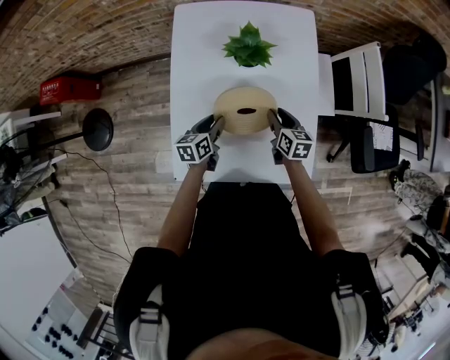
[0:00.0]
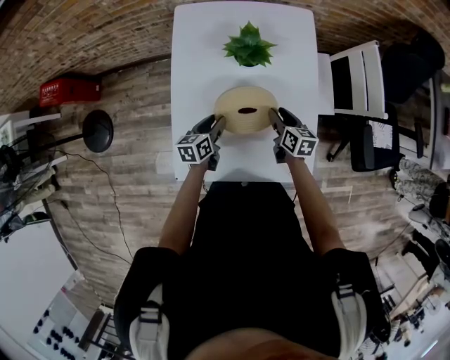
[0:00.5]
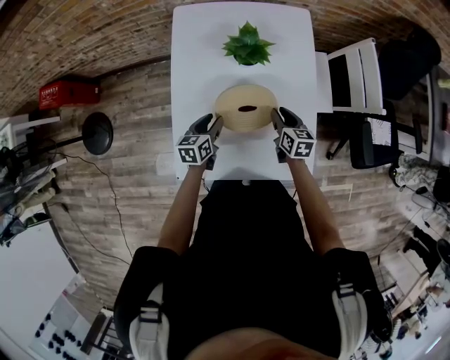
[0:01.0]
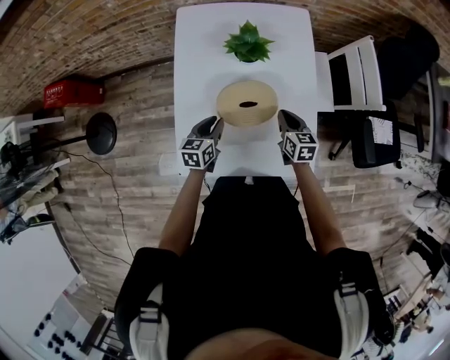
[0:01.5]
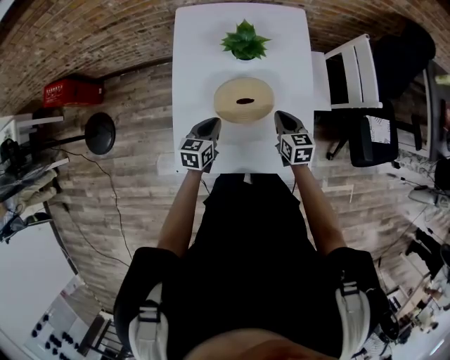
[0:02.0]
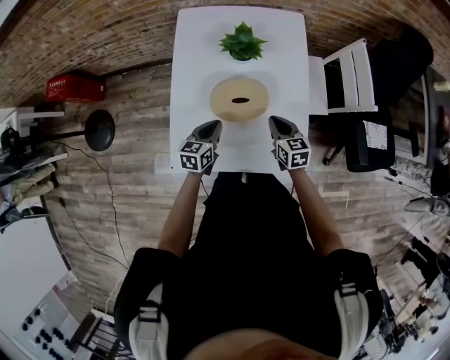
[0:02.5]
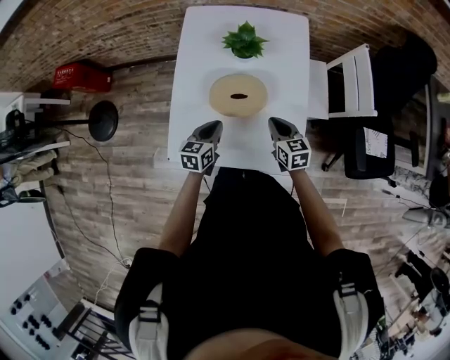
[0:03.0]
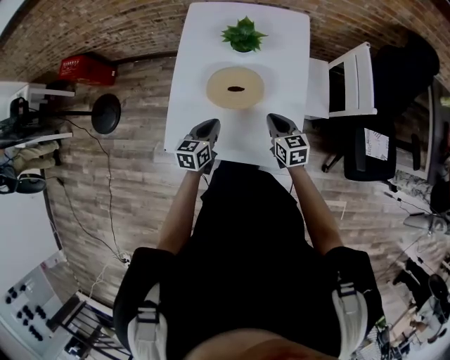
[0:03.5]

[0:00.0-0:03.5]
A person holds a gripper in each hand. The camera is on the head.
0.0 to 2.0 s: The left gripper ends up about 5 cm from where it was, and closes its fingers; the right gripper moves backward and upward, approximately 5 cm, and closes its fingers.
2.0 to 3.5 s: The right gripper shifts roughly 5 cm backward. The left gripper shifts approximately 10 cm backward and to the right.

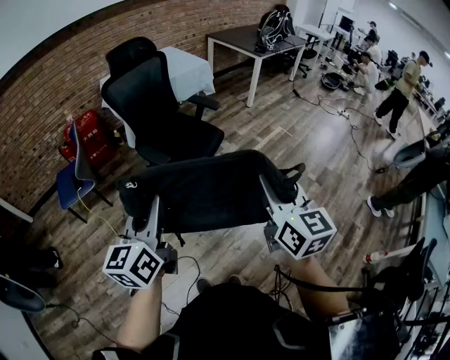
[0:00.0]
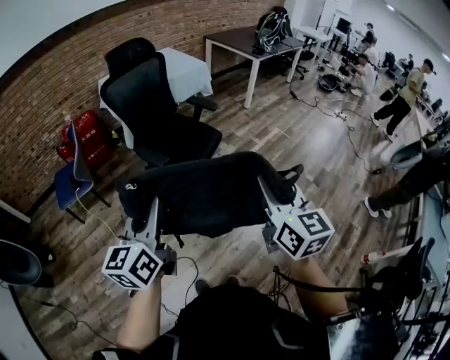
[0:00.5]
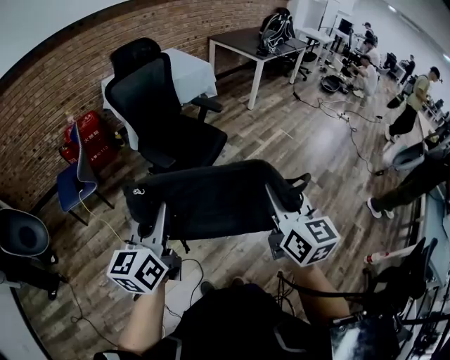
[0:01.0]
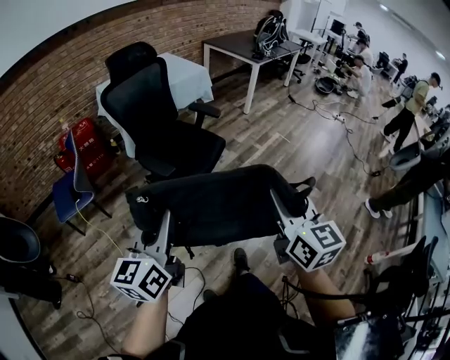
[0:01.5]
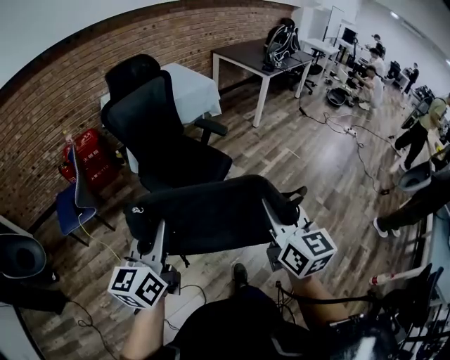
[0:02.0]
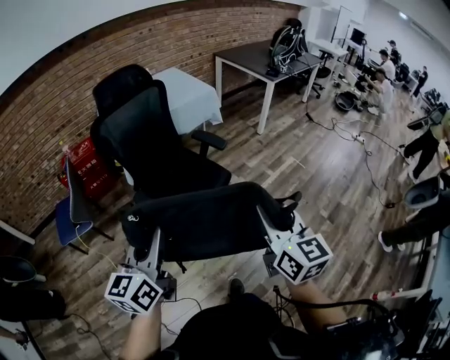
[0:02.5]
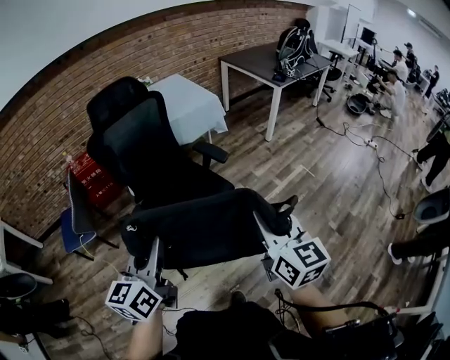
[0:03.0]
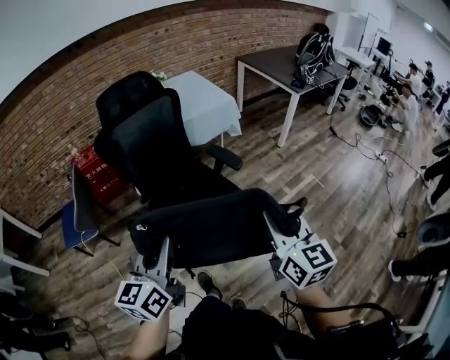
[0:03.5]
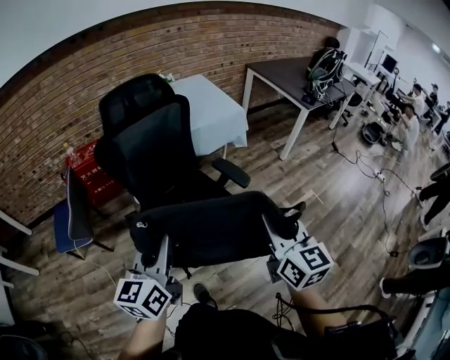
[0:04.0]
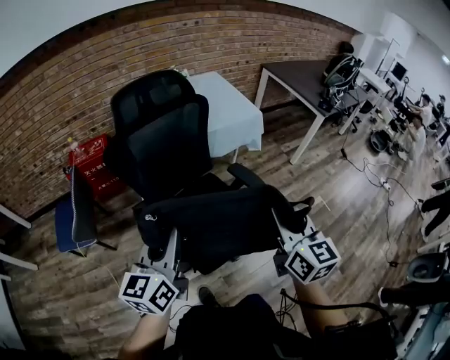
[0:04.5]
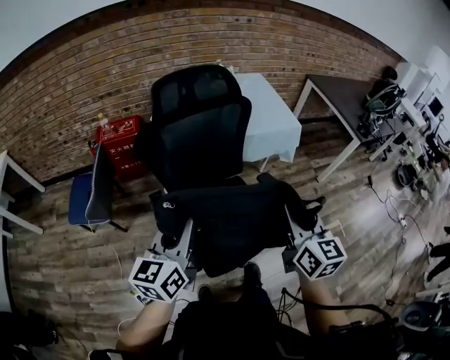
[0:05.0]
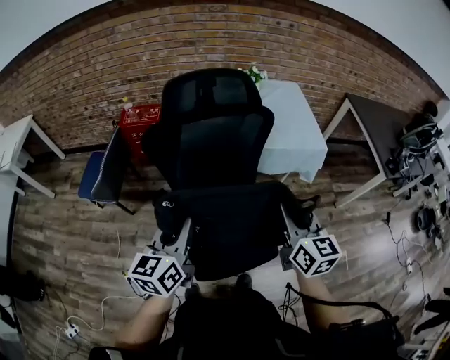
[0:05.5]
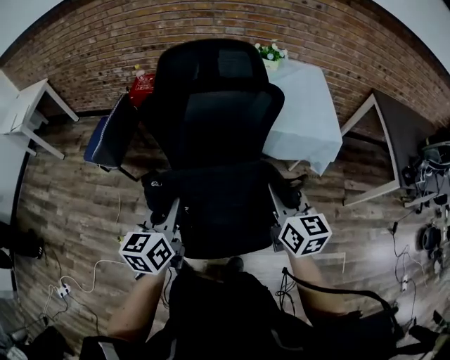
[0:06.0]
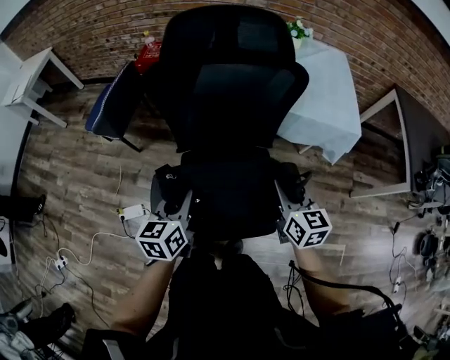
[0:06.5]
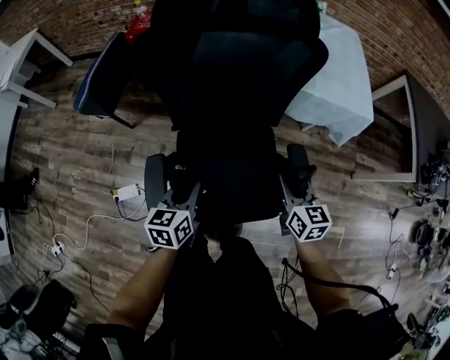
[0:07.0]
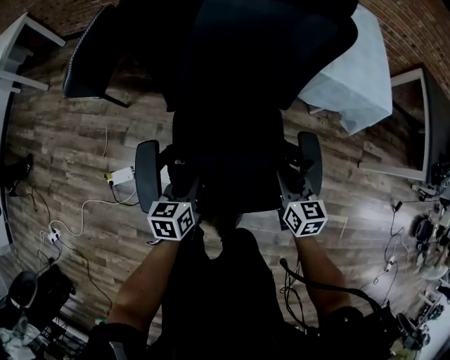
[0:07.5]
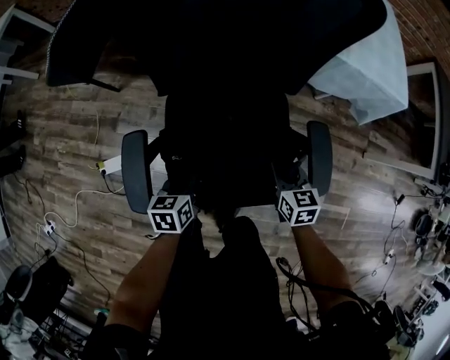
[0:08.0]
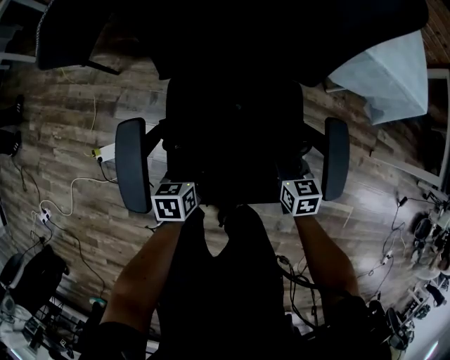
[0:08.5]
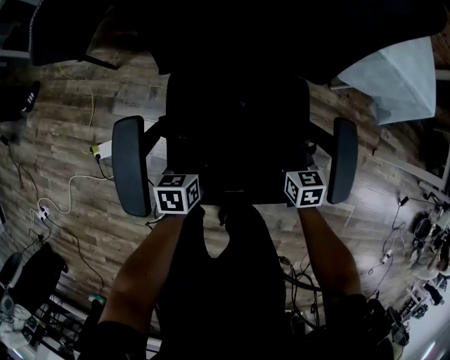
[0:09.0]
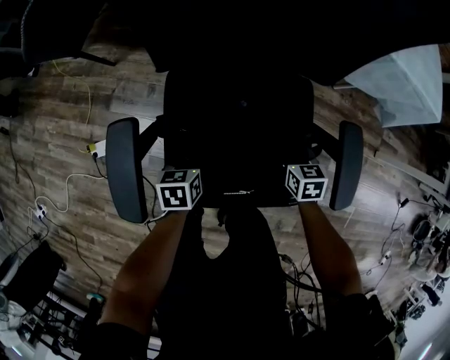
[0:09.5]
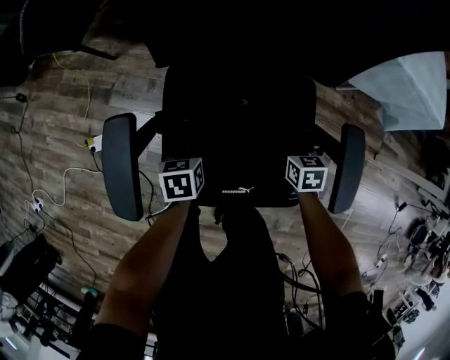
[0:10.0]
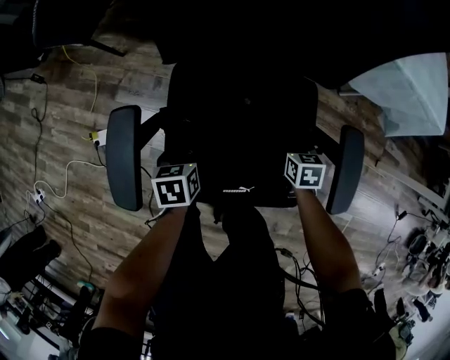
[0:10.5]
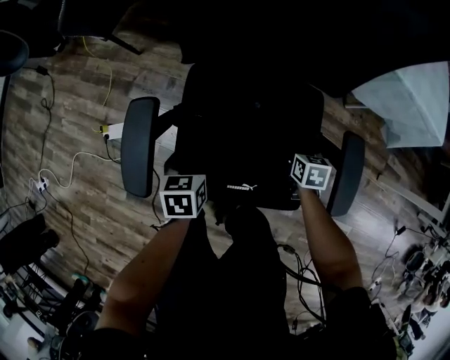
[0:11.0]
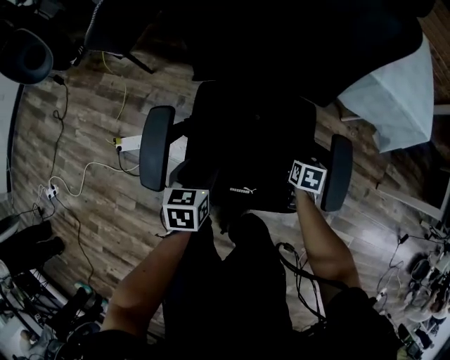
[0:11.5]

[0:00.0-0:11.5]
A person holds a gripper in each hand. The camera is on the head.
0.0 to 2.0 s: Both grippers move forward, some 10 cm.
2.0 to 4.0 s: The two grippers go approximately 30 cm forward.
4.0 to 6.0 s: The left gripper moves approximately 20 cm, and rotates about 30 degrees. The right gripper ends up some 35 cm from where it was, and rotates about 40 degrees.
6.0 to 7.5 s: Both grippers move downward, roughly 30 cm. The left gripper swivels some 20 degrees.
7.5 to 9.5 s: Both grippers move downward, some 20 cm.
9.5 to 11.5 s: The right gripper opens, while the left gripper moves upward, approximately 15 cm, and opens up.

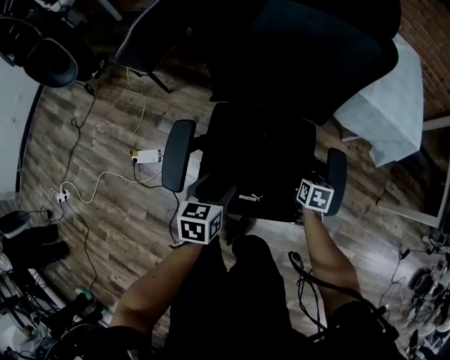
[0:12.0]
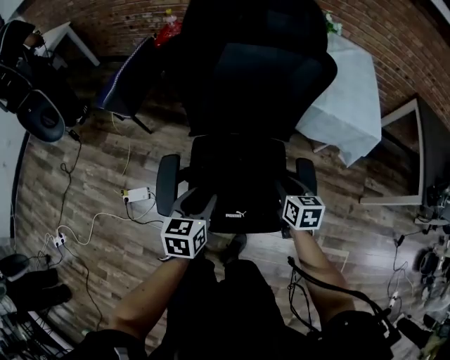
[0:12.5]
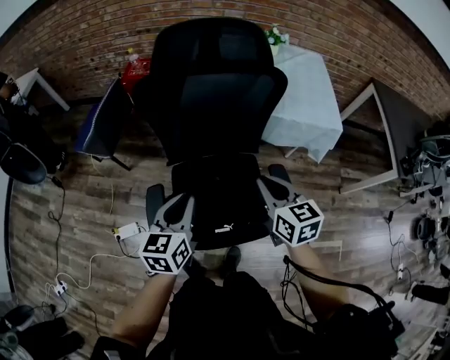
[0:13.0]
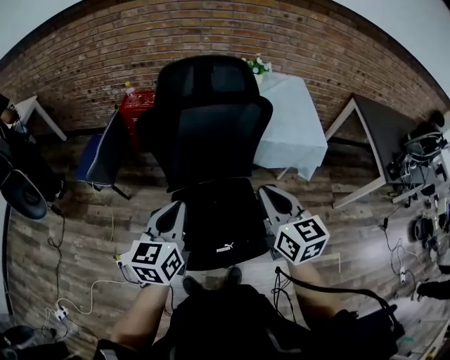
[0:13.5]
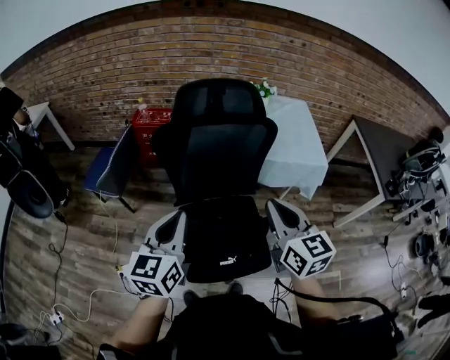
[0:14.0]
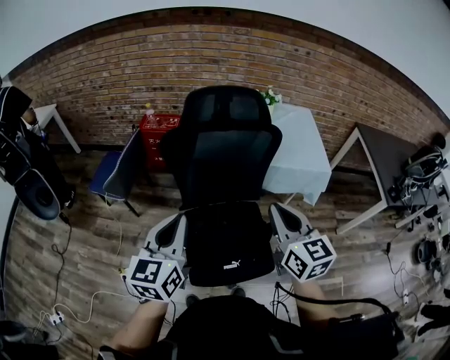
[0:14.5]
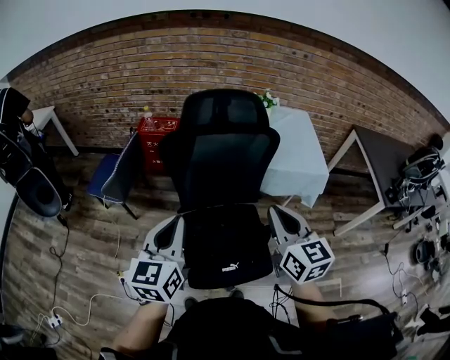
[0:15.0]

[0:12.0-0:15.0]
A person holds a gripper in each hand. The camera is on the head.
12.0 to 13.5 s: The two grippers go some 40 cm upward. The right gripper tips its fingers upward by roughly 50 degrees, and closes its fingers; the left gripper turns by roughly 30 degrees, and closes.
13.5 to 15.0 s: Both grippers move upward, about 5 cm.

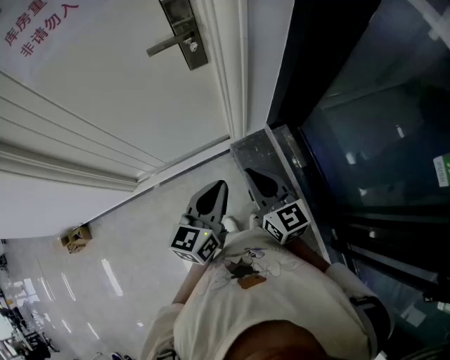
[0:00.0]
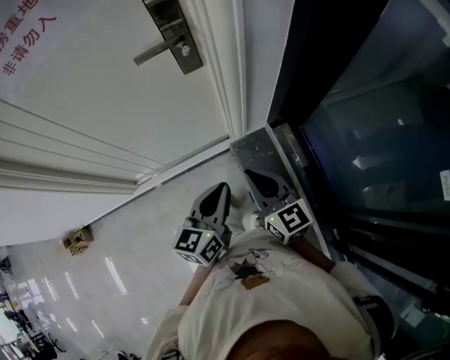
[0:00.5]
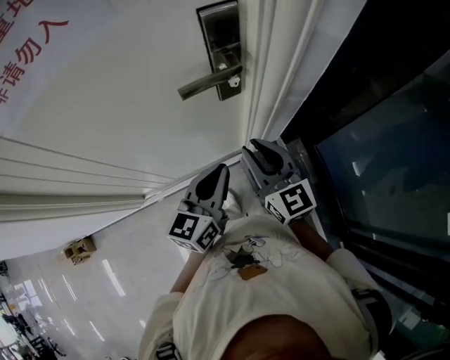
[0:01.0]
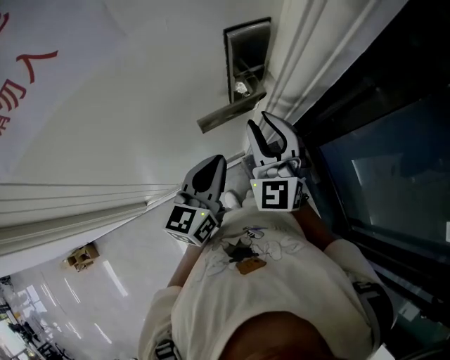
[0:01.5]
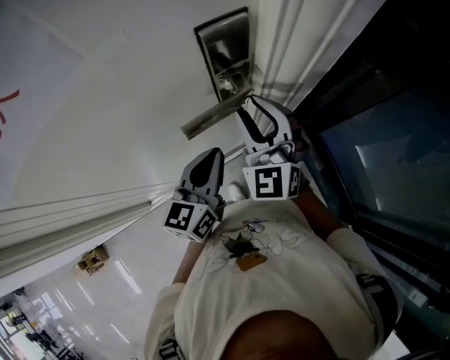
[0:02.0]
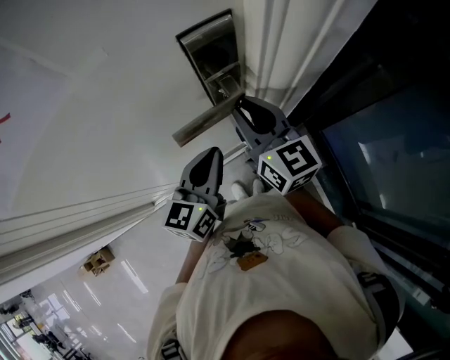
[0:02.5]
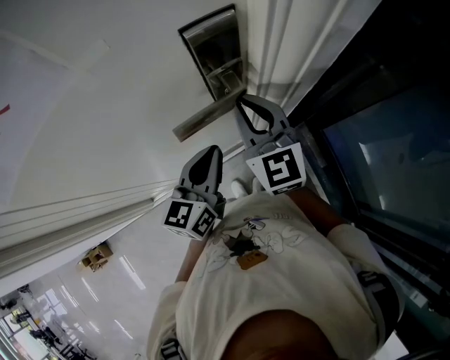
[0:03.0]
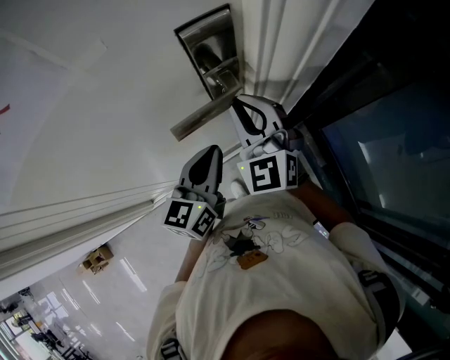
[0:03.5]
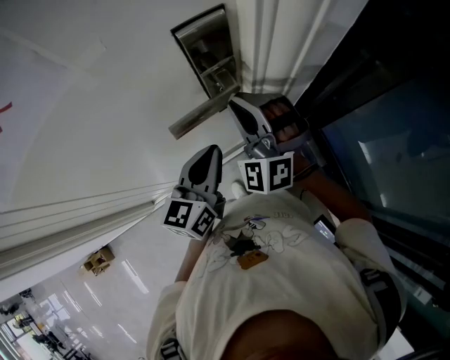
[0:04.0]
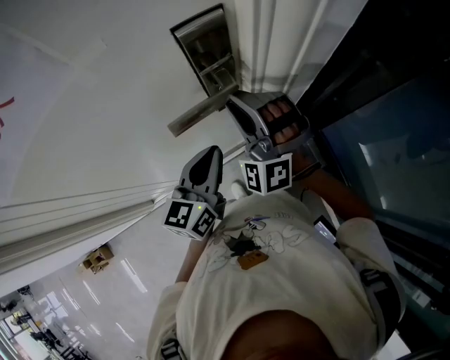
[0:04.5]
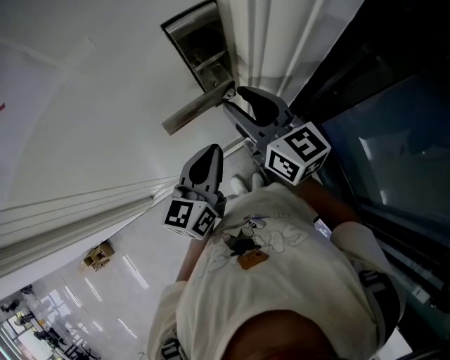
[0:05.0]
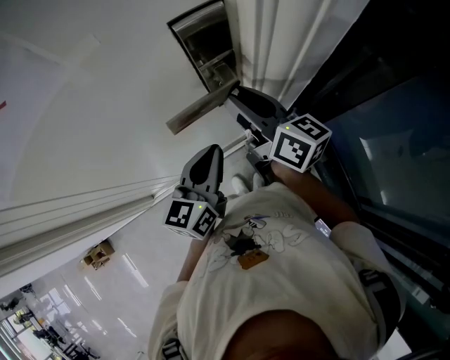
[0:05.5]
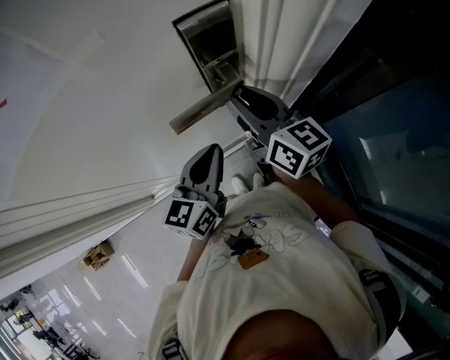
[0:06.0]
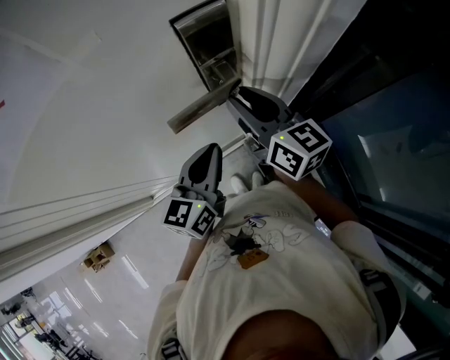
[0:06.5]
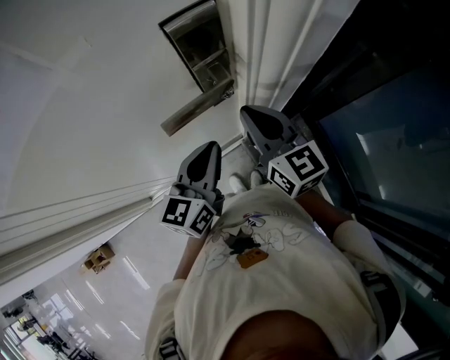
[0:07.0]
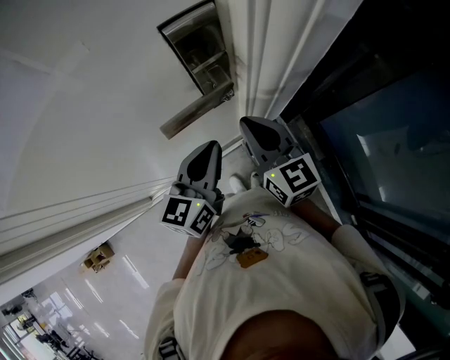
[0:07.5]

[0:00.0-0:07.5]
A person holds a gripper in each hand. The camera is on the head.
0.0 to 2.0 s: The right gripper moves forward, approximately 35 cm, twists about 50 degrees counterclockwise, seen from behind, and opens its fingers; the left gripper heads forward and to the left, covering some 35 cm.
2.0 to 4.0 s: The right gripper changes its angle by about 30 degrees, and closes up.
4.0 to 5.5 s: The right gripper rolls clockwise, seen from behind, by approximately 100 degrees, and opens.
5.5 to 7.5 s: The right gripper heads backward, covering roughly 5 cm, rotates approximately 30 degrees, and closes its fingers.

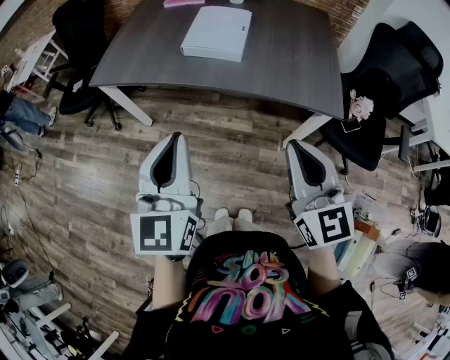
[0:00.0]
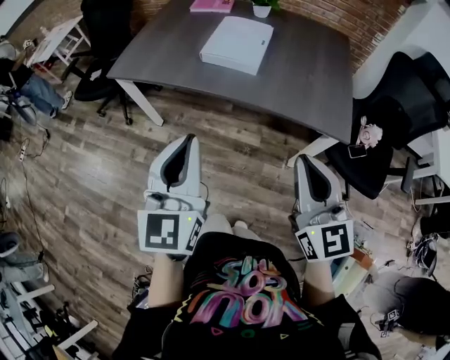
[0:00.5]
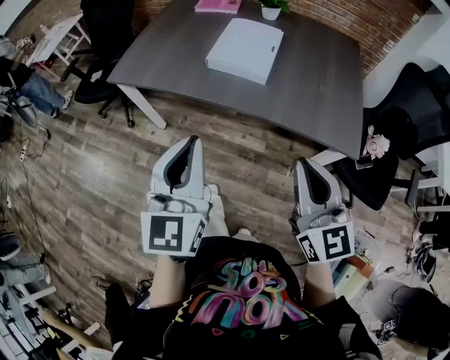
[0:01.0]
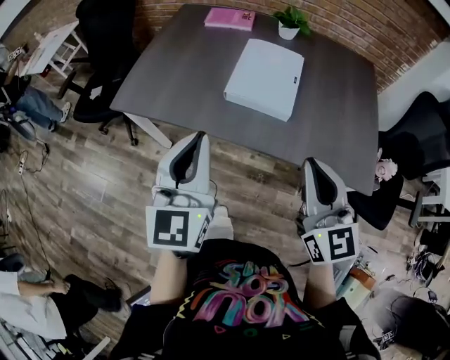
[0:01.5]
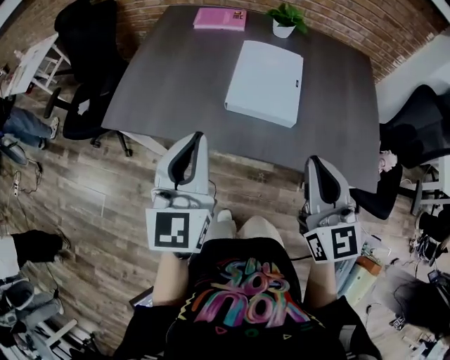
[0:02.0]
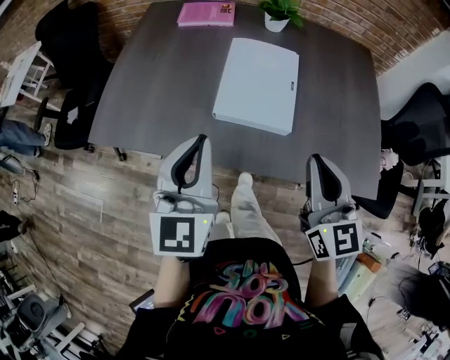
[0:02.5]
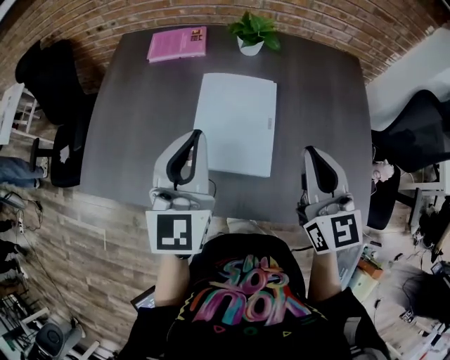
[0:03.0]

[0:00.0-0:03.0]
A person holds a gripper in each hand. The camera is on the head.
0.0 to 1.5 s: The two grippers go about 20 cm forward.
1.5 to 3.0 s: Both grippers travel together forward, approximately 25 cm.
